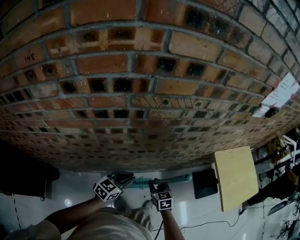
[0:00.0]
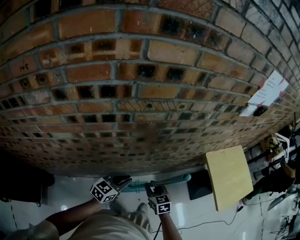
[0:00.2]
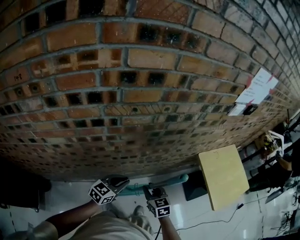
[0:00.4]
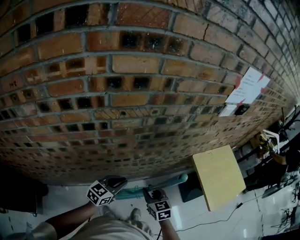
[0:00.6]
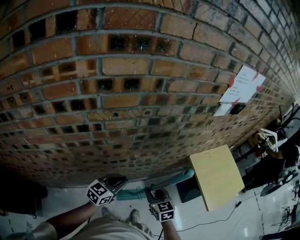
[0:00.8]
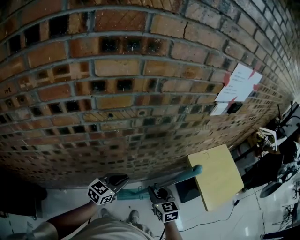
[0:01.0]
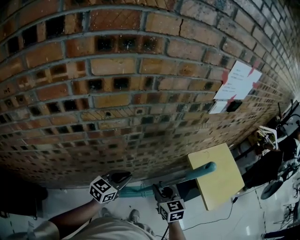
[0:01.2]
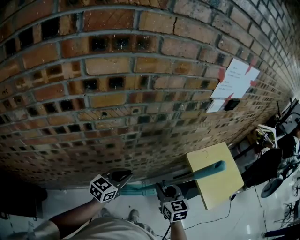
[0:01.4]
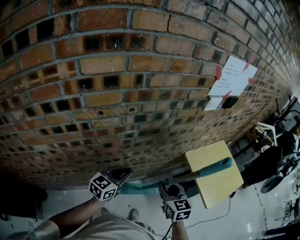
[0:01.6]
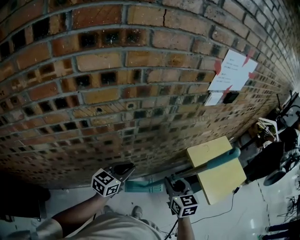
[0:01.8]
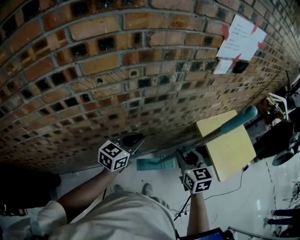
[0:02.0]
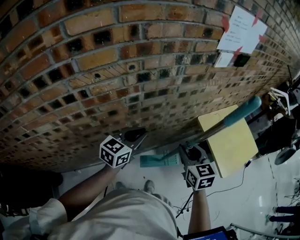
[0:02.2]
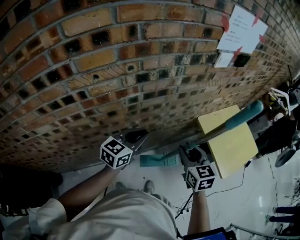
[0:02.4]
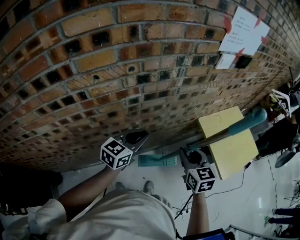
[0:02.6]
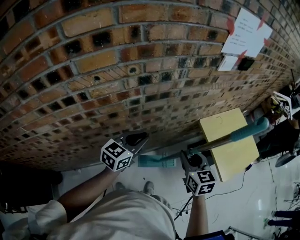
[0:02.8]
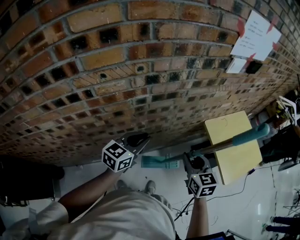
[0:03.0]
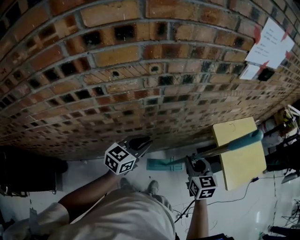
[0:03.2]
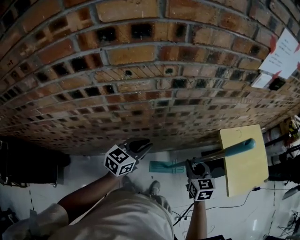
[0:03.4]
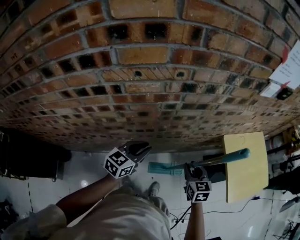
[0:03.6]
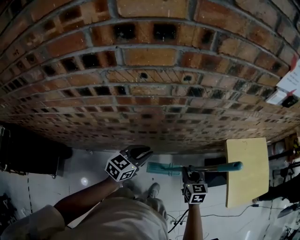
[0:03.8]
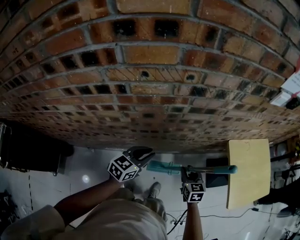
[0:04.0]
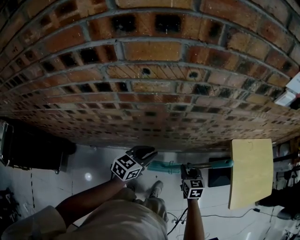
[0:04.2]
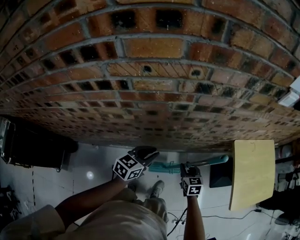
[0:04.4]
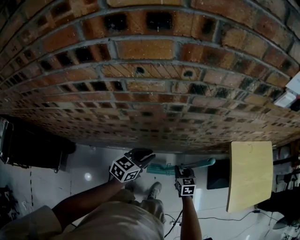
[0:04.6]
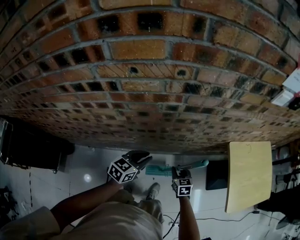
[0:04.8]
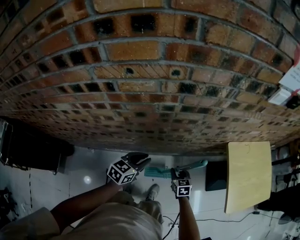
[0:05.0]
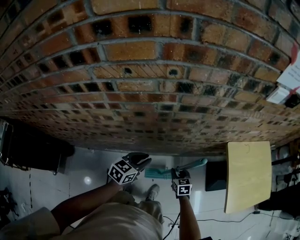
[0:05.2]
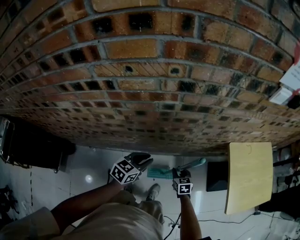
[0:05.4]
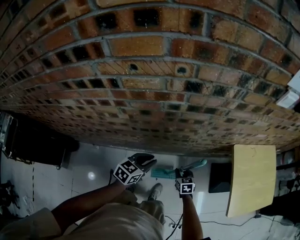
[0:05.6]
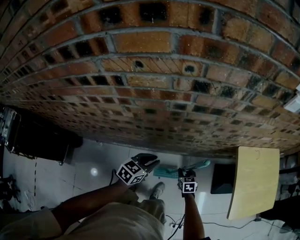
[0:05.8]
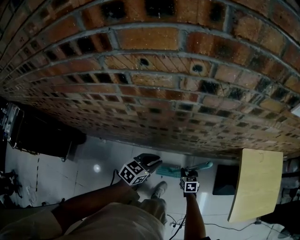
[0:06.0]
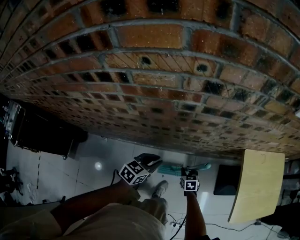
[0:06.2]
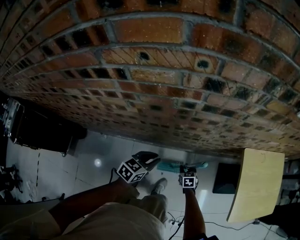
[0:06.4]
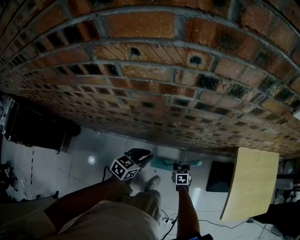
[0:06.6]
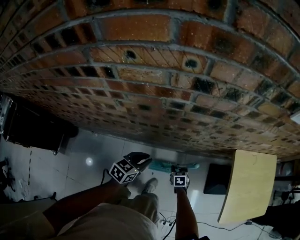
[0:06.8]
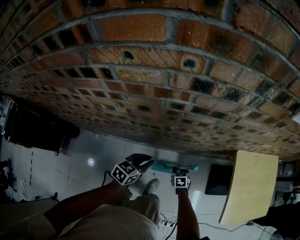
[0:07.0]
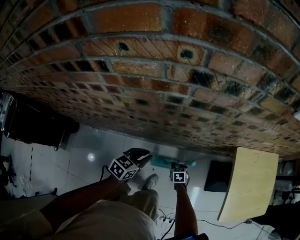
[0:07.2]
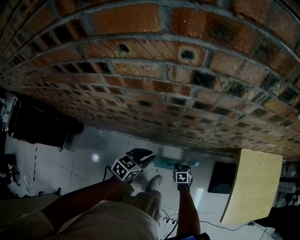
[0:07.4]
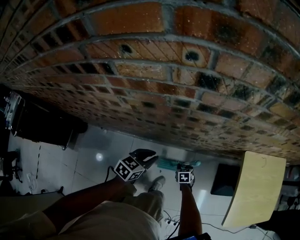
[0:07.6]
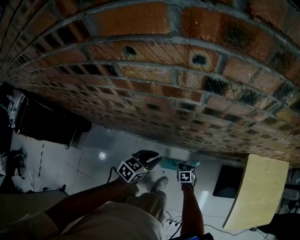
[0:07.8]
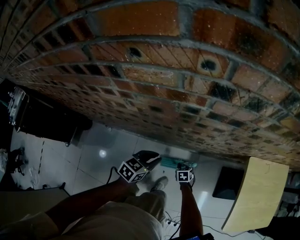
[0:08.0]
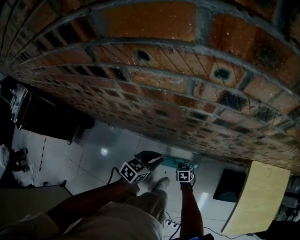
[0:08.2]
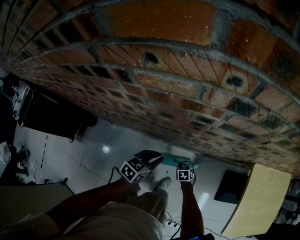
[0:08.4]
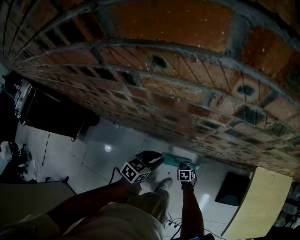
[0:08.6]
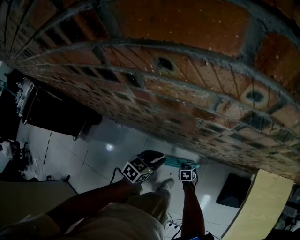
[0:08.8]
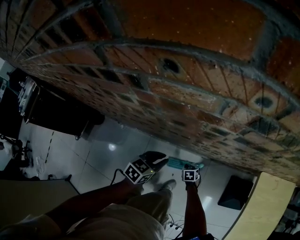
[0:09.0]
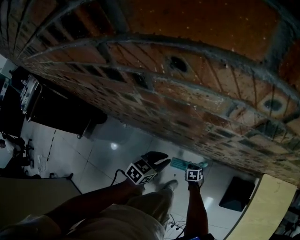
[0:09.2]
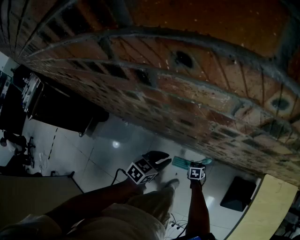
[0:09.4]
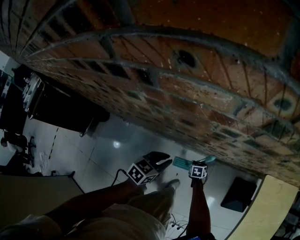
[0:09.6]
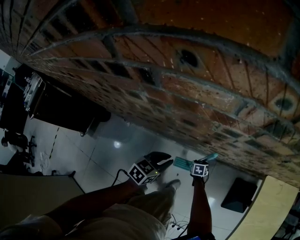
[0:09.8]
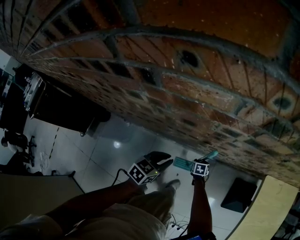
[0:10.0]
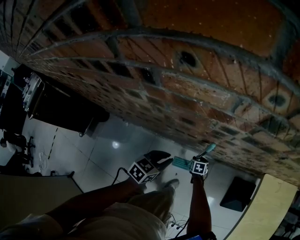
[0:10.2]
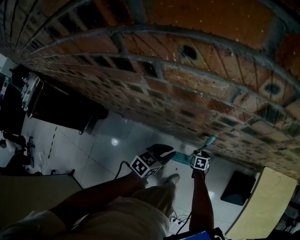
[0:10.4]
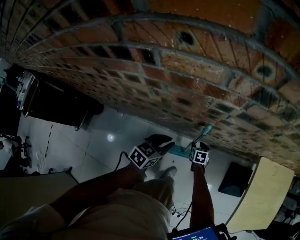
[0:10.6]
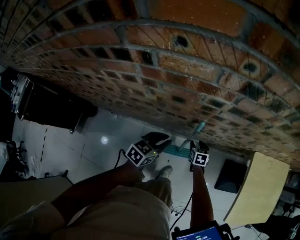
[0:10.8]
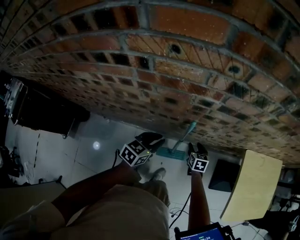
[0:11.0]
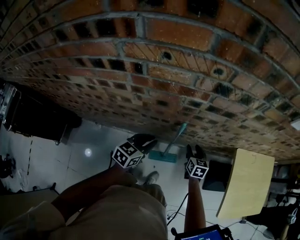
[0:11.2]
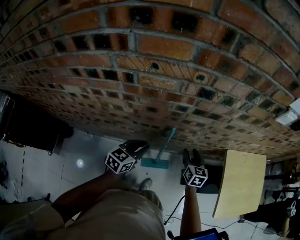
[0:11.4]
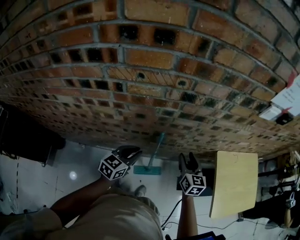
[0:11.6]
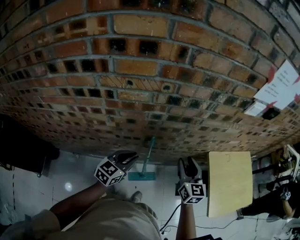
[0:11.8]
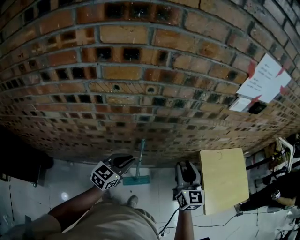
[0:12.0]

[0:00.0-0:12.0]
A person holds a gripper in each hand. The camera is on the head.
0:00.0 to 0:01.6: The left gripper is displaced to the right, upward and forward by about 20 cm. Meanwhile the right gripper heads upward and to the right, covering roughly 30 cm, and turns by roughly 20 degrees.
0:01.6 to 0:03.0: The right gripper changes place by about 5 cm.
0:03.0 to 0:04.4: The left gripper heads downward and to the left, covering roughly 15 cm. Meanwhile the right gripper goes roughly 25 cm downward.
0:04.4 to 0:06.0: The right gripper is displaced downward by roughly 15 cm. Meanwhile the left gripper heads downward, covering about 5 cm.
0:06.0 to 0:07.6: The right gripper heads downward, covering some 10 cm.
0:07.6 to 0:09.0: The left gripper goes some 5 cm to the left, while the right gripper goes roughly 10 cm to the left and forward.
0:09.0 to 0:10.4: The right gripper travels forward by approximately 5 cm.
0:10.4 to 0:12.0: The left gripper heads upward and to the right, covering about 20 cm, and changes its angle by about 30 degrees, while the right gripper goes about 50 cm upward, and tilts its fingers approximately 50 degrees upward.

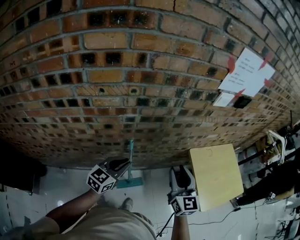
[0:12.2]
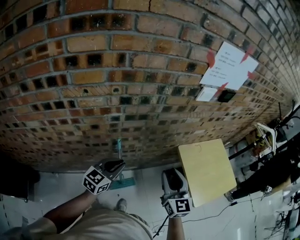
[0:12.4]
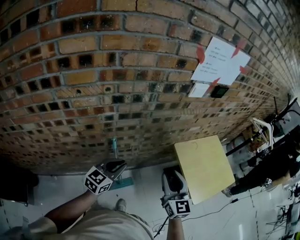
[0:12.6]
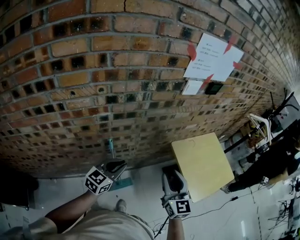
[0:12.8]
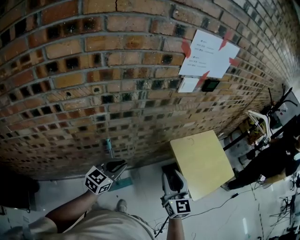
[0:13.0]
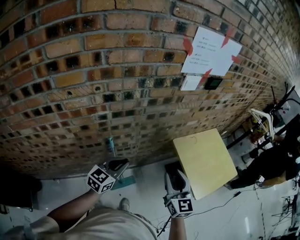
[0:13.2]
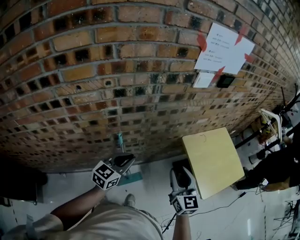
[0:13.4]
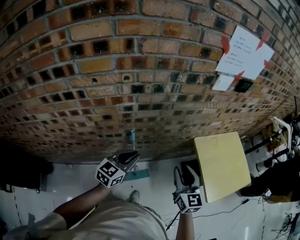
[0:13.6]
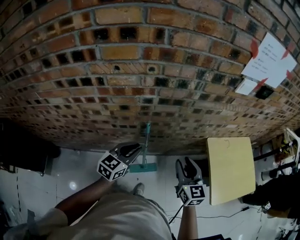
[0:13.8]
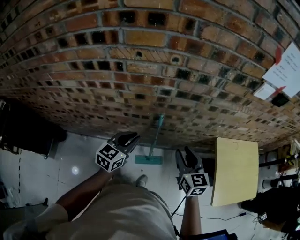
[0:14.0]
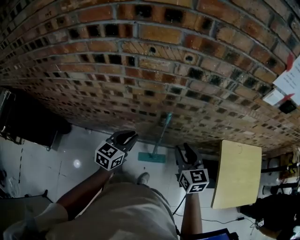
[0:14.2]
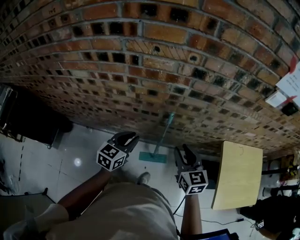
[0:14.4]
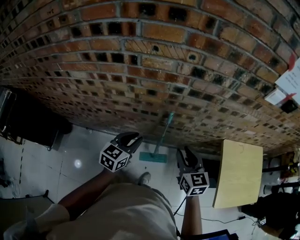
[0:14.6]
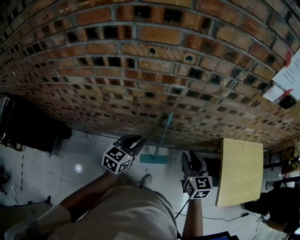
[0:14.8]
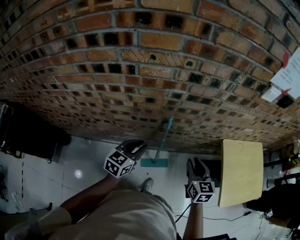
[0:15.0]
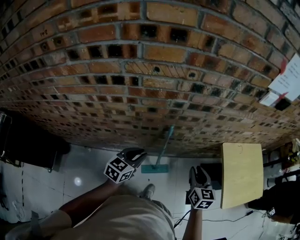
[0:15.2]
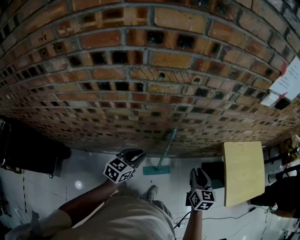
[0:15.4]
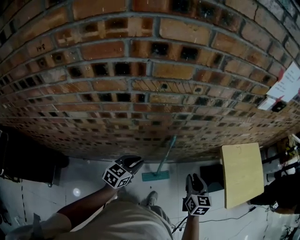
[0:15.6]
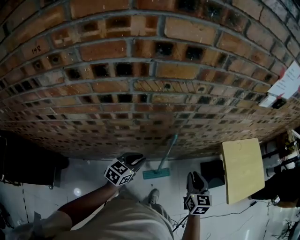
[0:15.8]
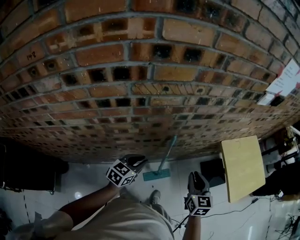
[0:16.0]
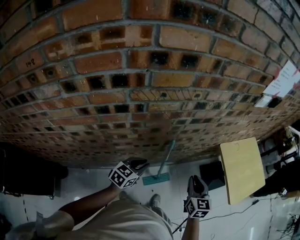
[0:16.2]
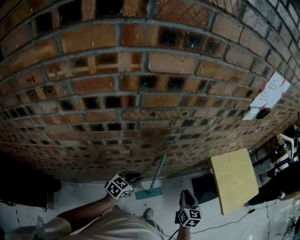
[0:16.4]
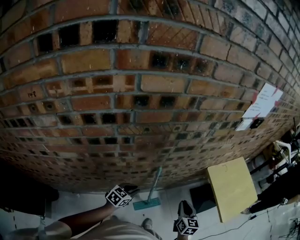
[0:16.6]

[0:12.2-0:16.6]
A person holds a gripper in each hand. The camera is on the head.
0:12.2 to 0:13.6: The right gripper shifts by about 5 cm.
0:13.6 to 0:15.2: The right gripper changes place by some 10 cm. The left gripper ends up about 15 cm from where it was.
0:15.2 to 0:16.6: The left gripper goes some 5 cm downward, and turns by about 20 degrees.

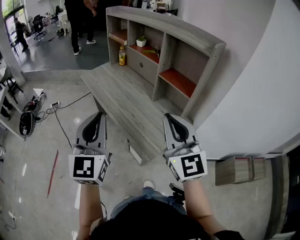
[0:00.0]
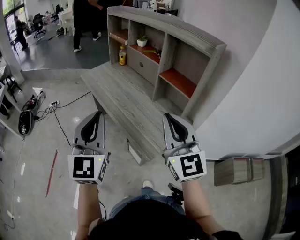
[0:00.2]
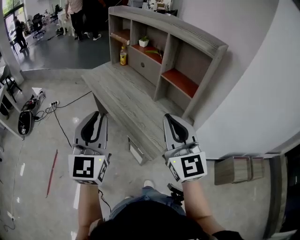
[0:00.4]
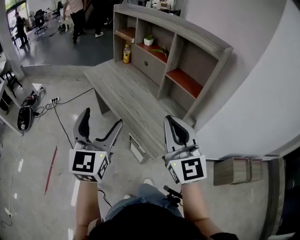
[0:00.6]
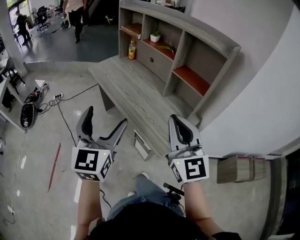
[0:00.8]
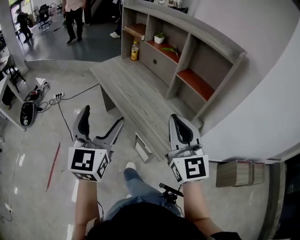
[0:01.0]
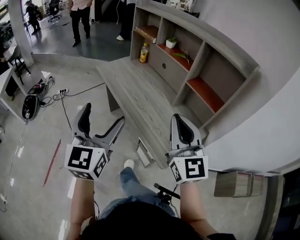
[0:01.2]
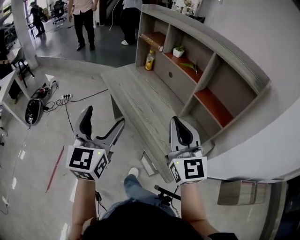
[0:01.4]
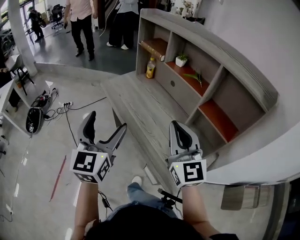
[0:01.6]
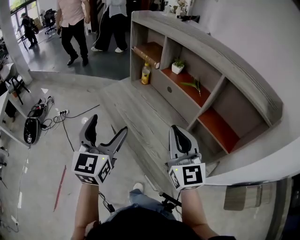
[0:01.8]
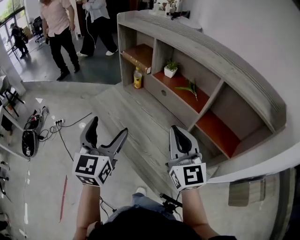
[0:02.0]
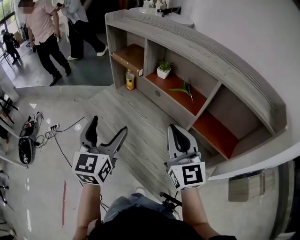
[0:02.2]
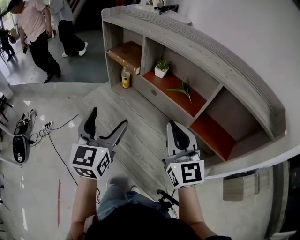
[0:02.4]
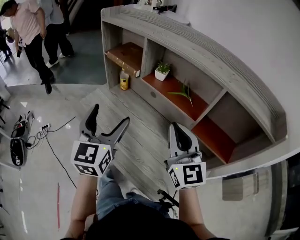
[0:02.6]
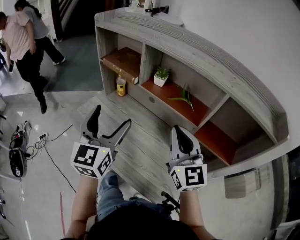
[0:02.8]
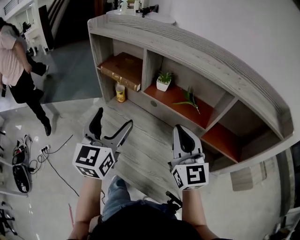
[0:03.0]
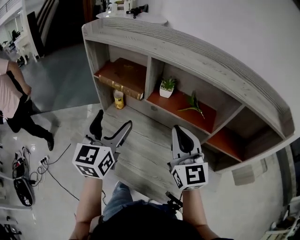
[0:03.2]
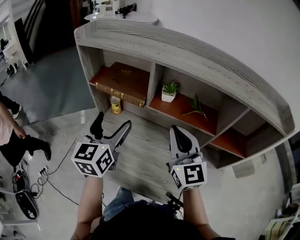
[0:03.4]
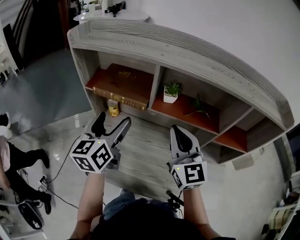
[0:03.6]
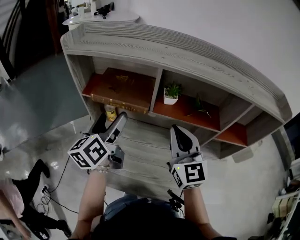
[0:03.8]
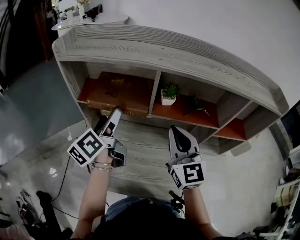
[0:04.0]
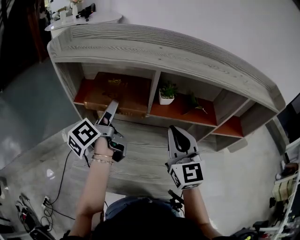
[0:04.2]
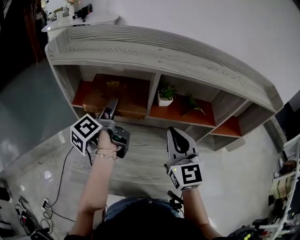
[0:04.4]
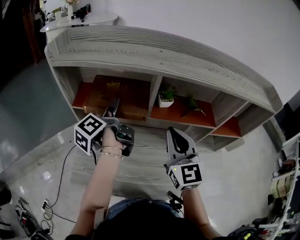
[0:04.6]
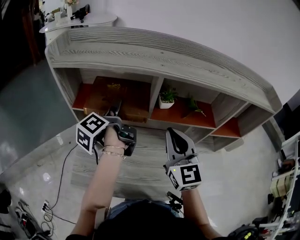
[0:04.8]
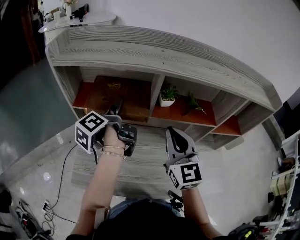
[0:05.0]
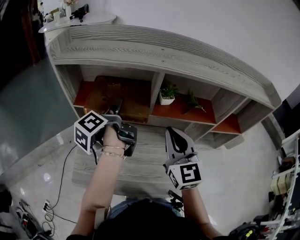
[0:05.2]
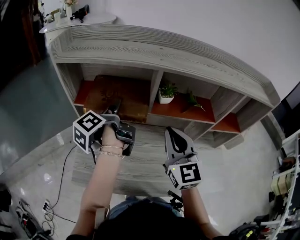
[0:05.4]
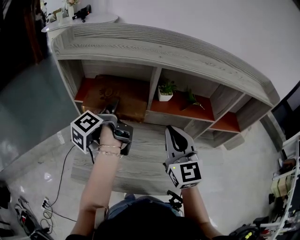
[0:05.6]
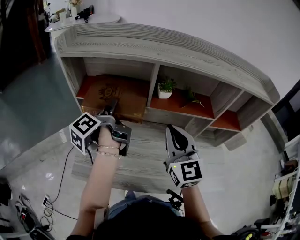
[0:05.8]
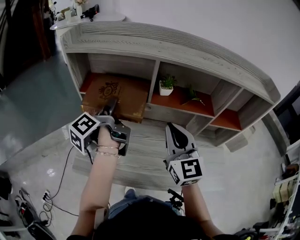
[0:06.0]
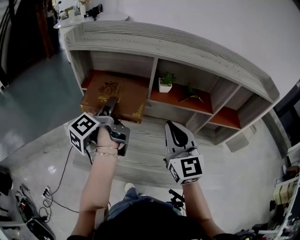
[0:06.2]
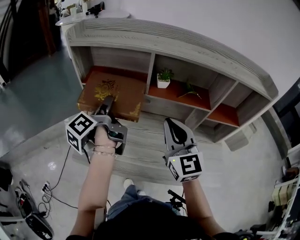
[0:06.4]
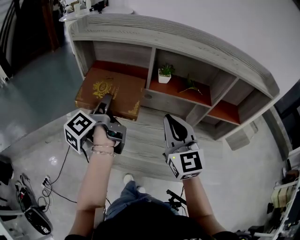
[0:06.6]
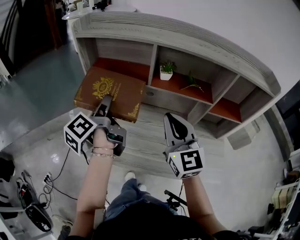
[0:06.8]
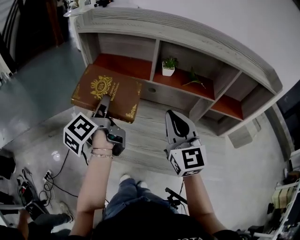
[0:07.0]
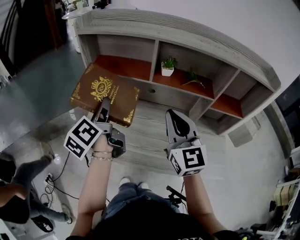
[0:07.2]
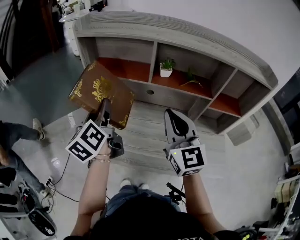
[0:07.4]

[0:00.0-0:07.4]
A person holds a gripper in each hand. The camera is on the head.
0:00.0 to 0:01.4: Both grippers travel together forward and to the left, about 20 cm. The left gripper opens up.
0:01.4 to 0:03.0: The right gripper changes place by some 30 cm, and swivels approximately 20 degrees. Meanwhile the left gripper shifts by roughly 40 cm, and changes its angle by roughly 30 degrees.
0:03.0 to 0:04.4: The left gripper travels forward and to the left by some 25 cm, and rolls counterclockwise, seen from behind, by approximately 80 degrees, while the right gripper goes approximately 15 cm to the left and forward, and swivels some 30 degrees.
0:04.4 to 0:06.0: The left gripper travels backward by approximately 5 cm, and closes up.
0:06.0 to 0:07.4: The left gripper moves backward and to the left, some 15 cm, and rotates around the line of its fingers by some 50 degrees, clockwise from behind; the right gripper is displaced backward by some 5 cm.
